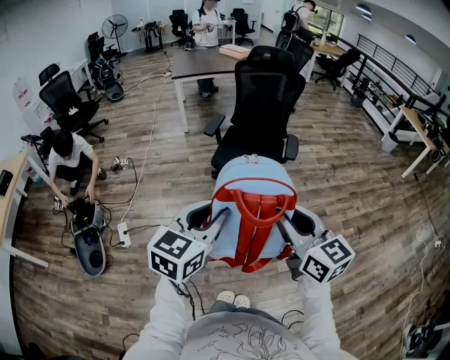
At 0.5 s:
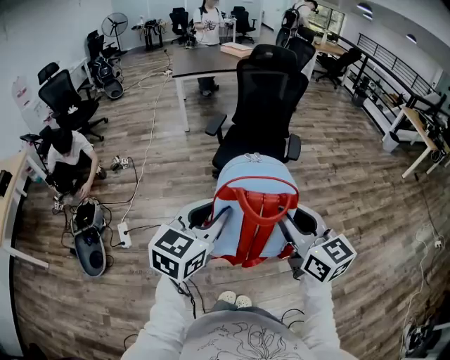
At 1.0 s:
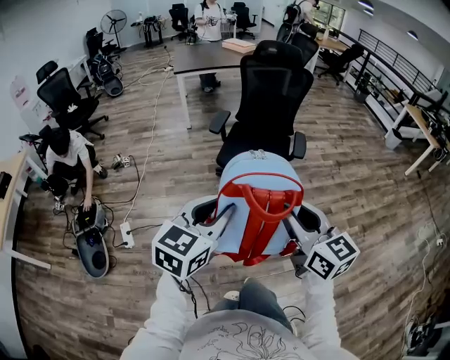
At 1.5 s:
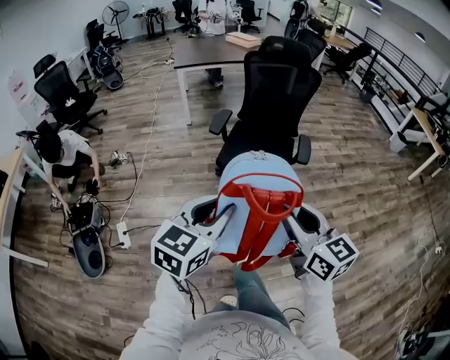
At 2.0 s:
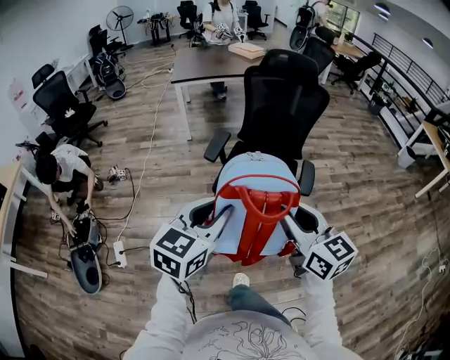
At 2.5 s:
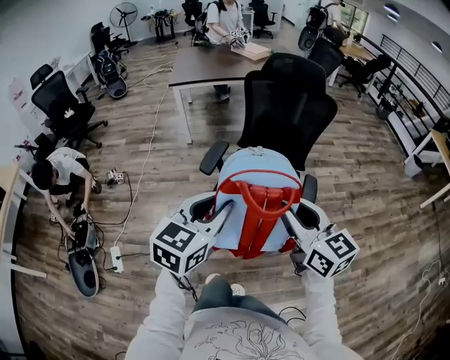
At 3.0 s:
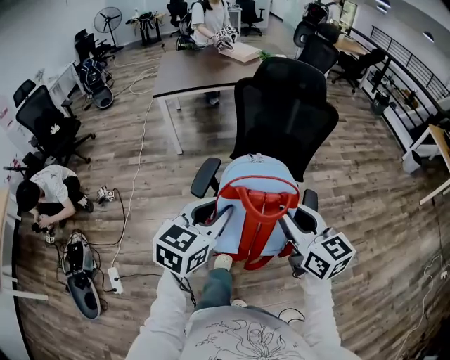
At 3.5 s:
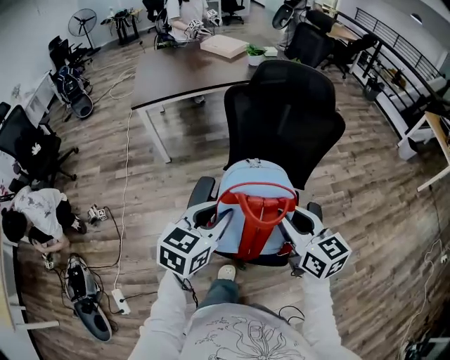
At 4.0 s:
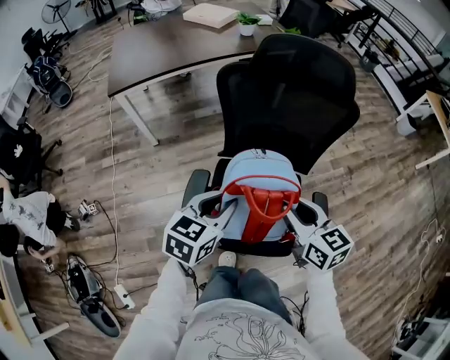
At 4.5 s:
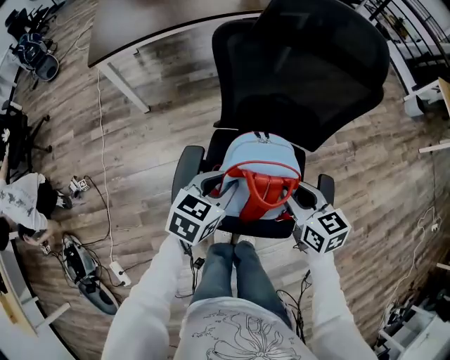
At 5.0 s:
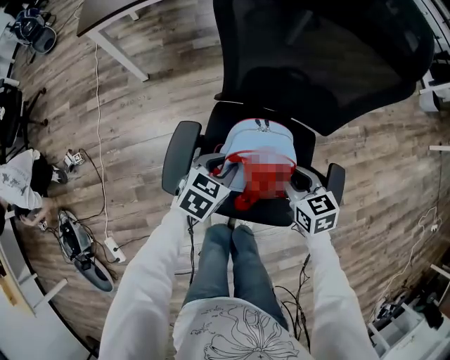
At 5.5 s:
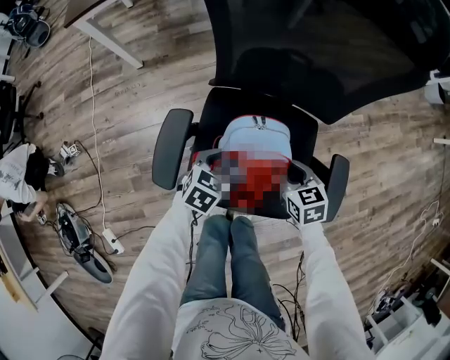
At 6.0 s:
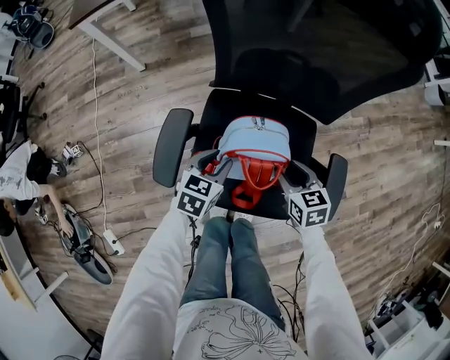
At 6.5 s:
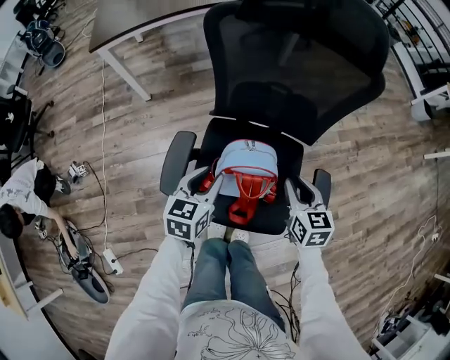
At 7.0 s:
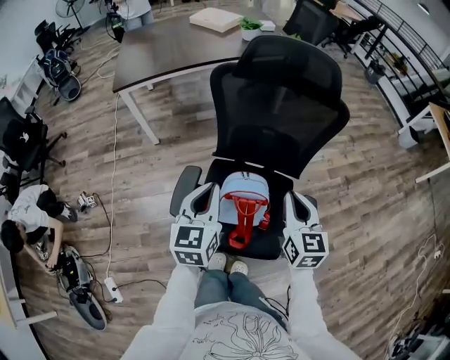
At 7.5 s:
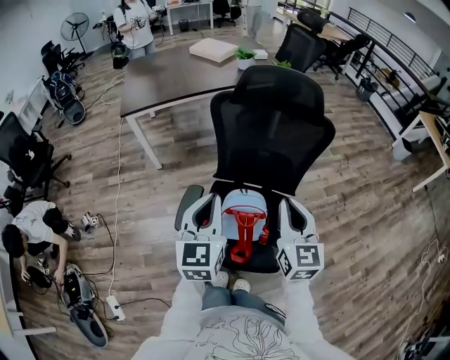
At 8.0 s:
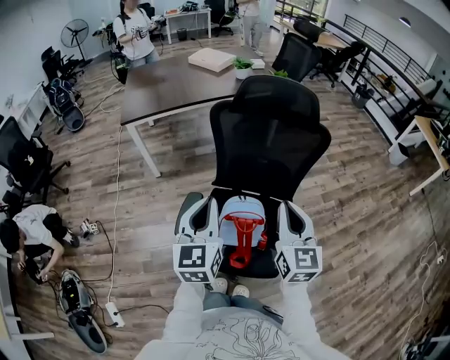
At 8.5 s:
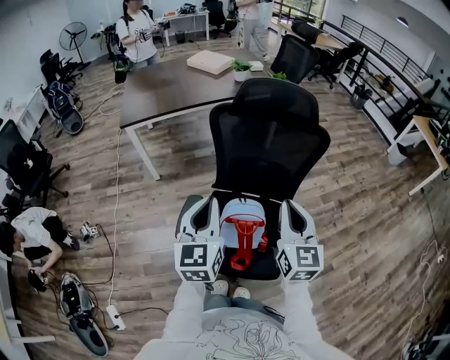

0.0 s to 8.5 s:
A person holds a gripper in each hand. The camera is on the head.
0.0 to 2.0 s: The grippers both shift forward by some 30 cm.
2.0 to 4.0 s: Both grippers are carried forward, about 50 cm. The right gripper turns by approximately 20 degrees, while the left gripper rotates roughly 20 degrees.
4.0 to 6.5 s: The left gripper moves downward, roughly 15 cm. The right gripper heads downward and to the right, covering some 20 cm.
6.5 to 8.5 s: The grippers both shift upward by approximately 30 cm. The left gripper rotates roughly 30 degrees, and closes its fingers. The right gripper tilts its fingers about 30 degrees upward, and closes up.

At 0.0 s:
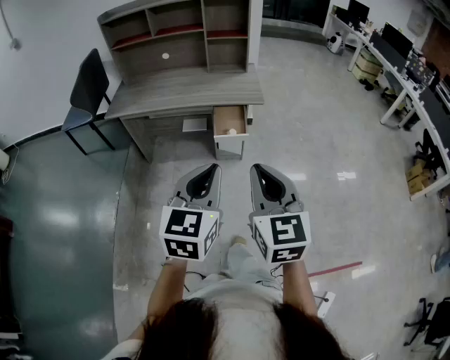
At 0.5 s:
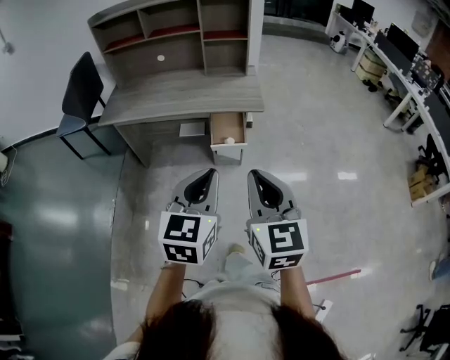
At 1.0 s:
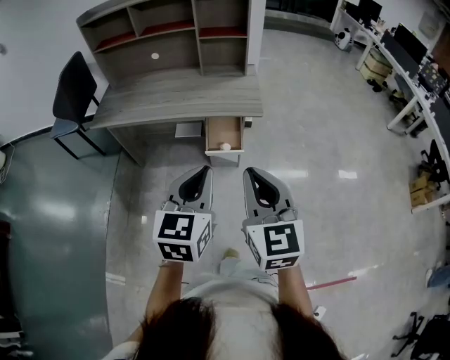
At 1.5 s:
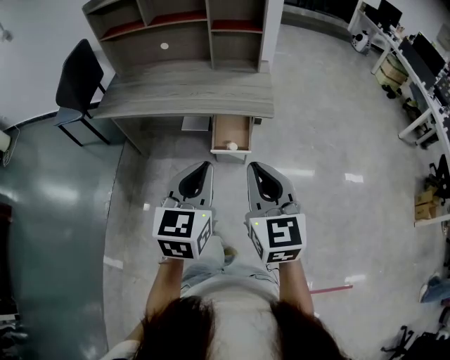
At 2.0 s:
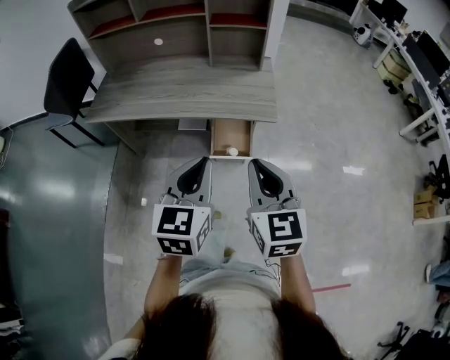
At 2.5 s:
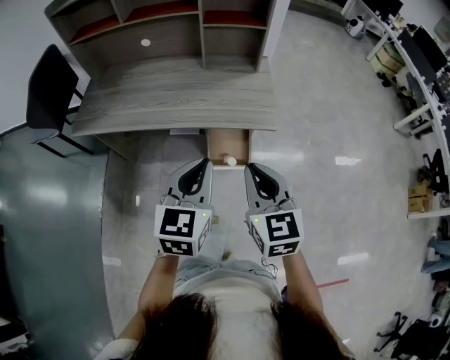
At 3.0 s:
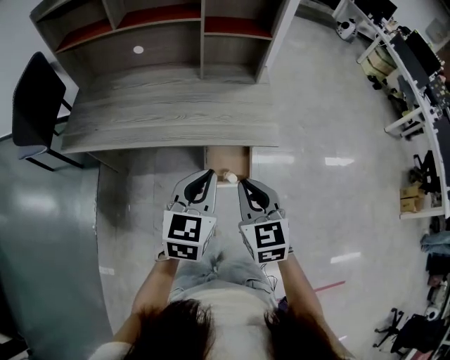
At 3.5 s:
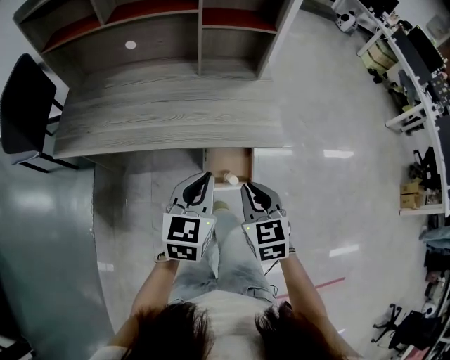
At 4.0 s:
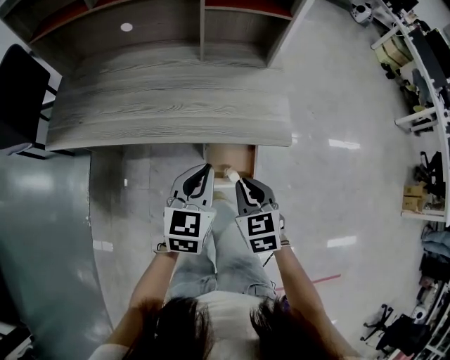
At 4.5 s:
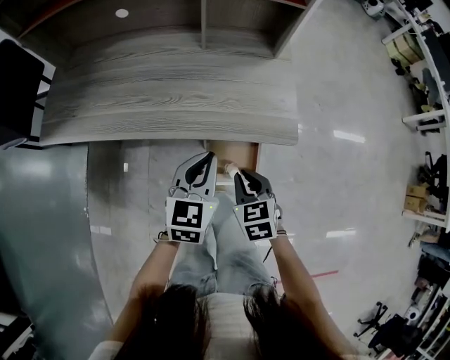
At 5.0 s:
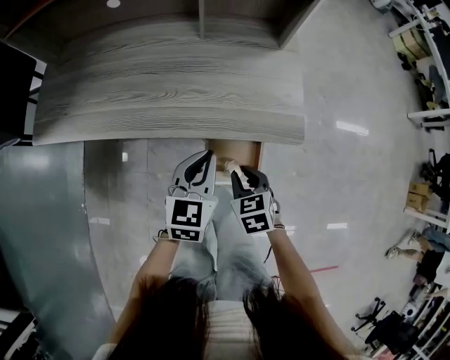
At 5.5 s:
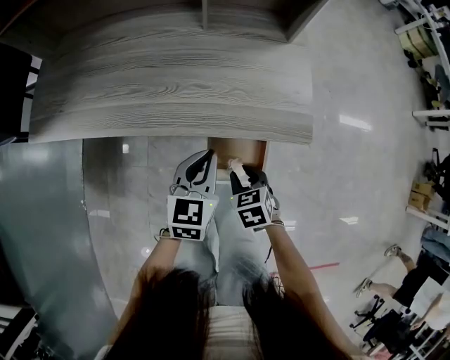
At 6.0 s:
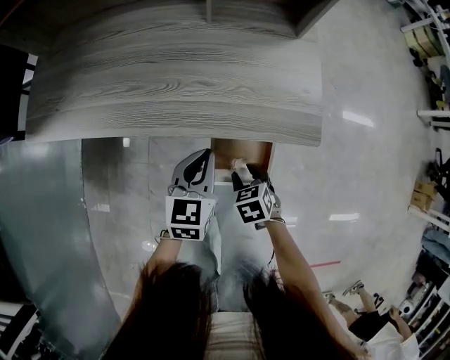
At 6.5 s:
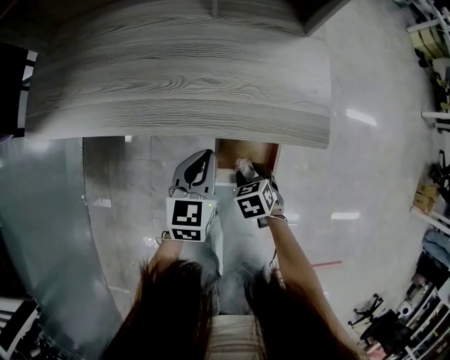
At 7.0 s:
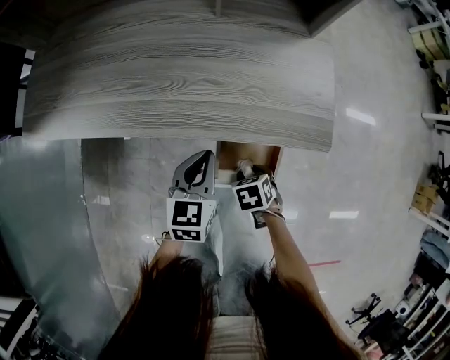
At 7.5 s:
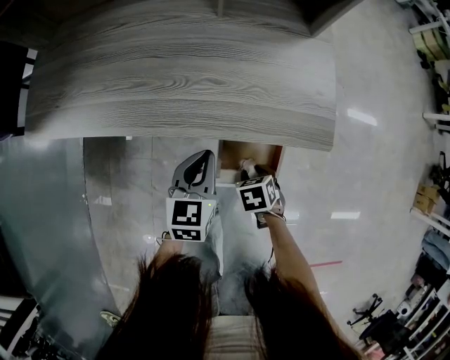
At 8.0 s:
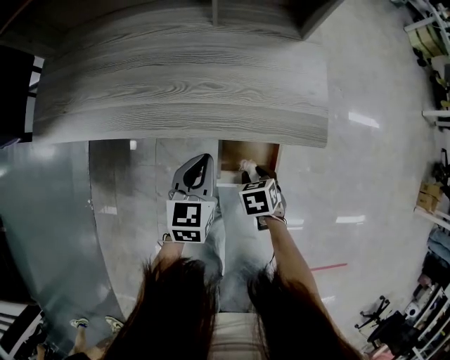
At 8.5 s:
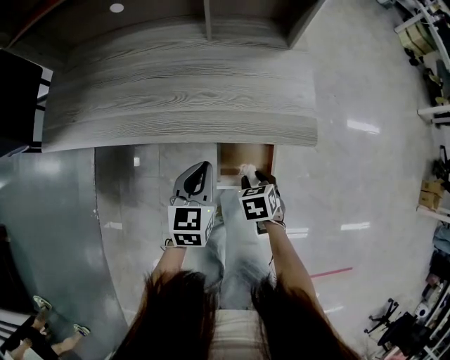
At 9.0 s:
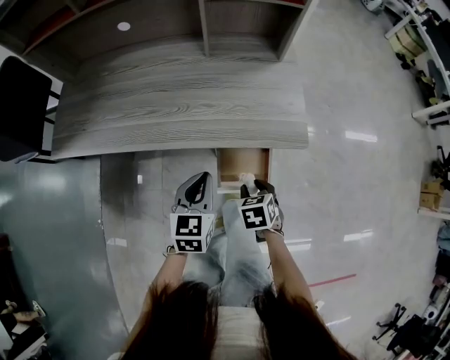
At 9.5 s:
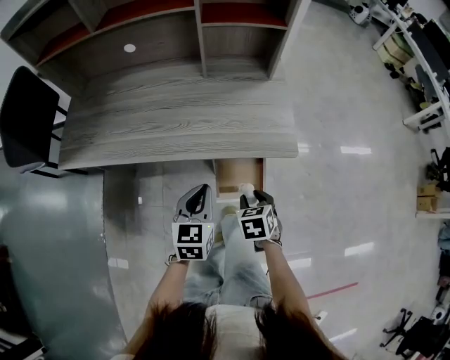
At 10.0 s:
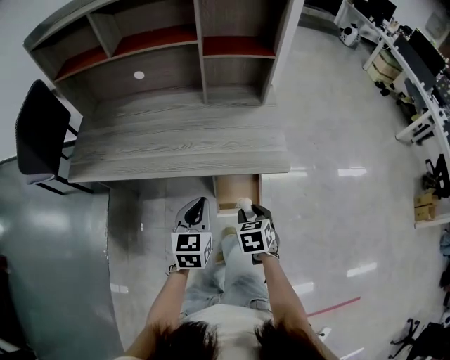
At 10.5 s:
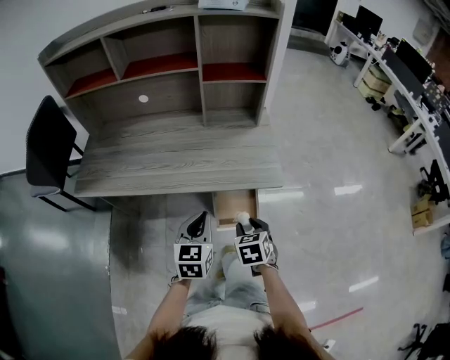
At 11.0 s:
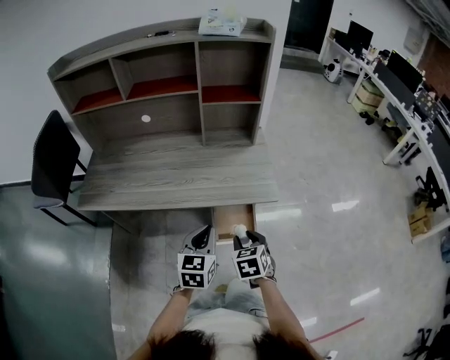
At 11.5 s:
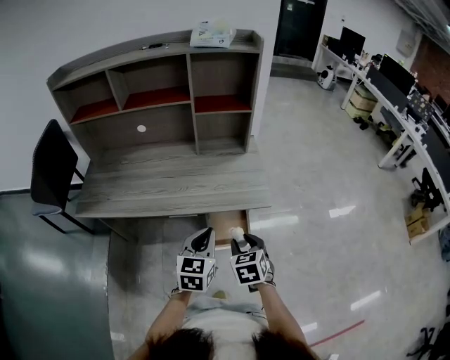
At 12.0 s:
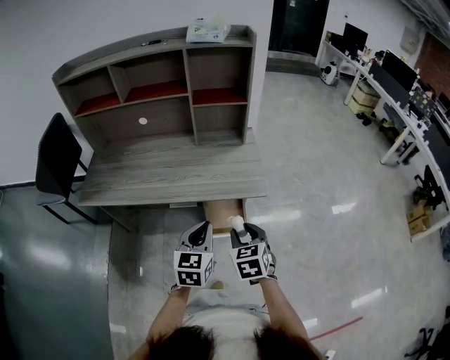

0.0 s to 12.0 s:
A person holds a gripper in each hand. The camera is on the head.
0.0 to 2.0 s: Both grippers move forward, about 30 cm.
2.0 to 4.0 s: The right gripper is displaced downward and forward by some 30 cm, and rotates roughly 30 degrees. Meanwhile the left gripper moves forward and downward, about 30 cm.
4.0 to 6.0 s: The left gripper moves downward and forward, roughly 15 cm; the right gripper heads downward, covering roughly 20 cm, swivels roughly 30 degrees, and opens up.
6.0 to 8.0 s: The grippers move only a little.
8.0 to 10.0 s: The right gripper moves upward, about 20 cm, and swivels approximately 20 degrees. The left gripper moves upward and backward, about 15 cm.
10.0 to 12.0 s: The right gripper moves upward and backward, roughly 15 cm. The left gripper travels upward, backward and to the right by roughly 15 cm.

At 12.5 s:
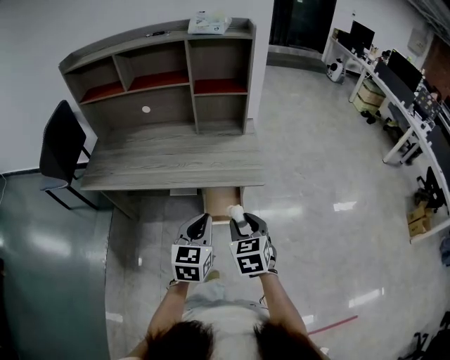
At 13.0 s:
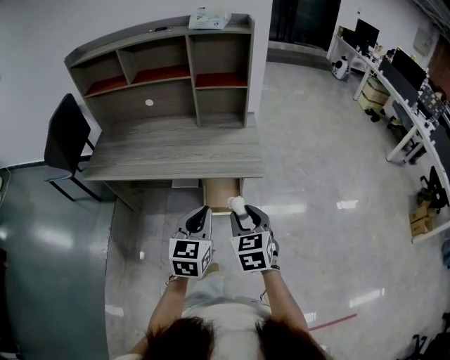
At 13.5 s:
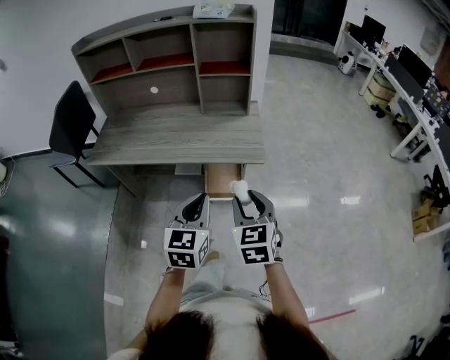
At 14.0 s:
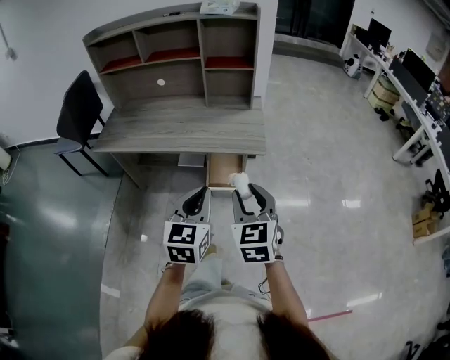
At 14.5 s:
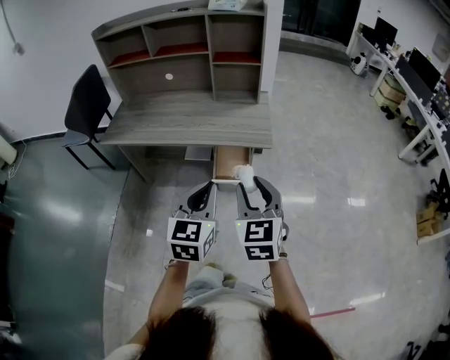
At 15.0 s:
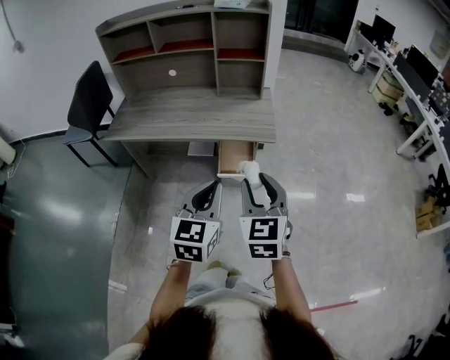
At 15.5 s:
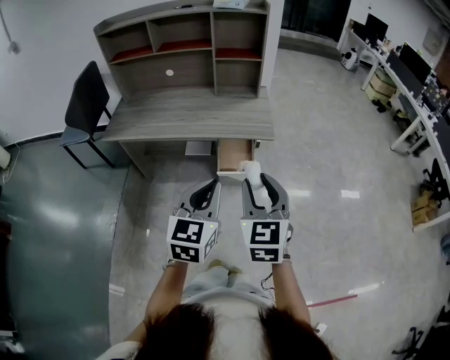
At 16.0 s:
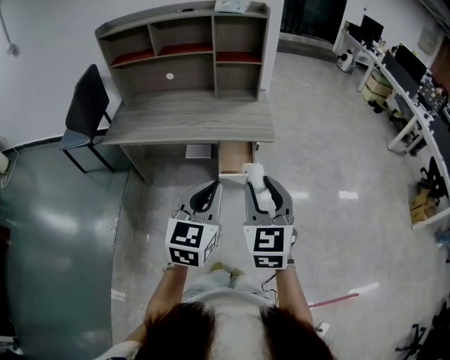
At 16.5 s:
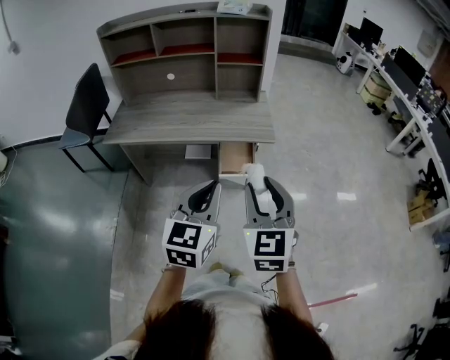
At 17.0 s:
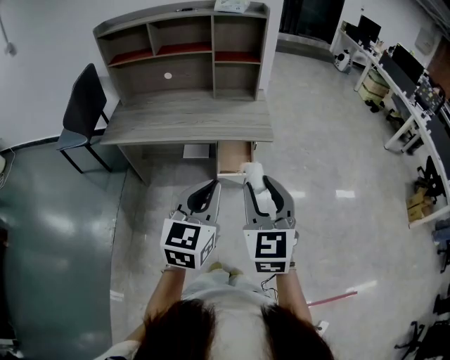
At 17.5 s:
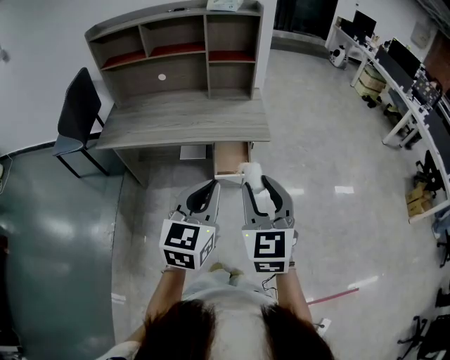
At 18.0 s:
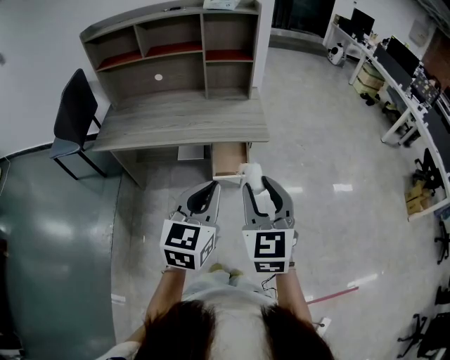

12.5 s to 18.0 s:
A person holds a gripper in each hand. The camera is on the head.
12.5 to 14.5 s: Both grippers travel together backward and upward, some 15 cm.
14.5 to 16.0 s: The two grippers go some 5 cm backward.
16.0 to 18.0 s: The grippers make only small movements.

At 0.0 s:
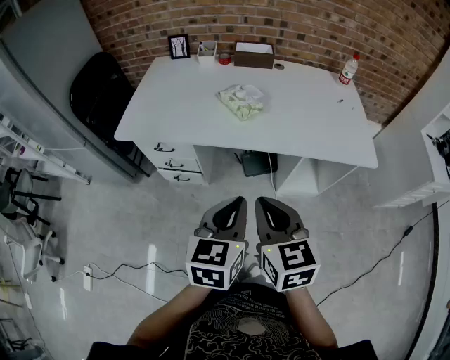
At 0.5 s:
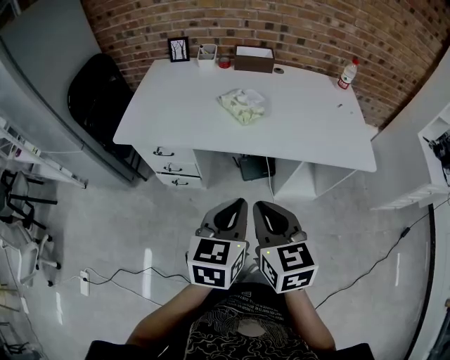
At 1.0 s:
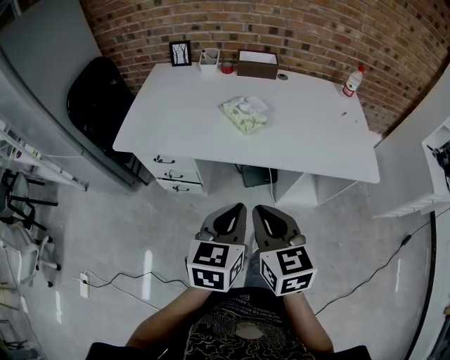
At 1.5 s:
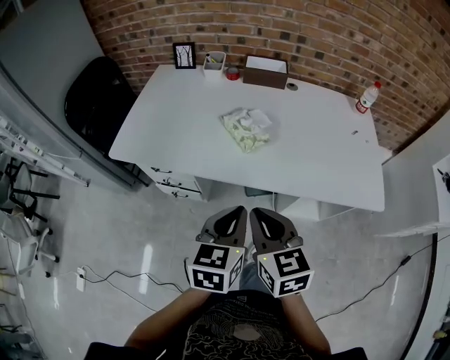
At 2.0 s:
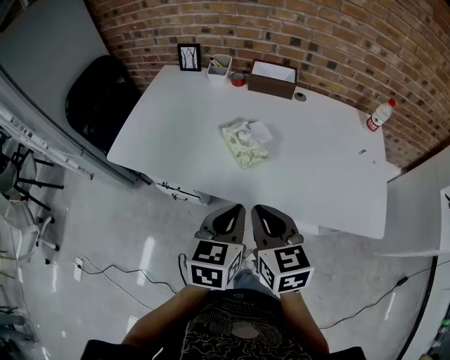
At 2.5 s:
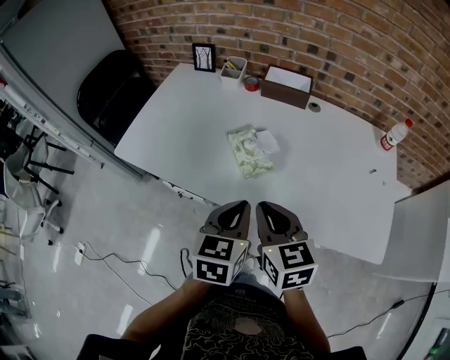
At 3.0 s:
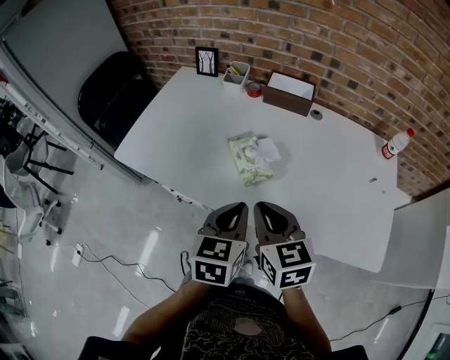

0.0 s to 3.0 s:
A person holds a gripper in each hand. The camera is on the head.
0.0 to 1.5 s: The two grippers go roughly 10 cm forward.
1.5 to 3.0 s: The right gripper moves forward and to the right, about 15 cm. The left gripper travels forward by some 15 cm.
